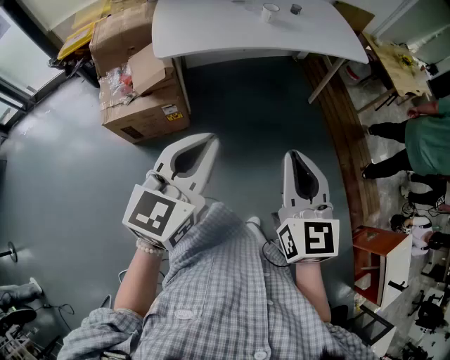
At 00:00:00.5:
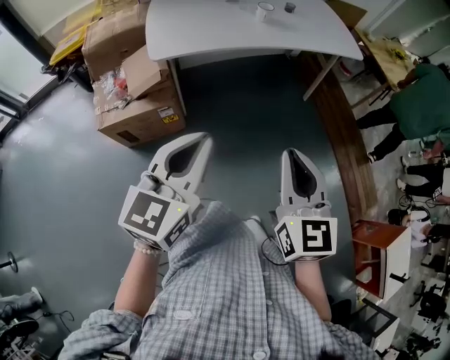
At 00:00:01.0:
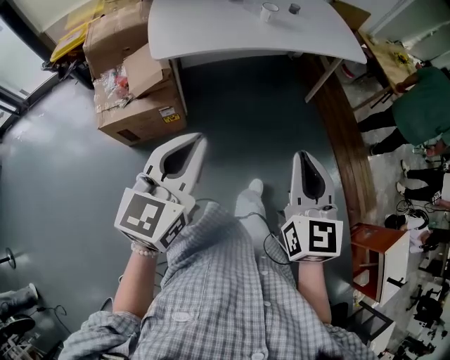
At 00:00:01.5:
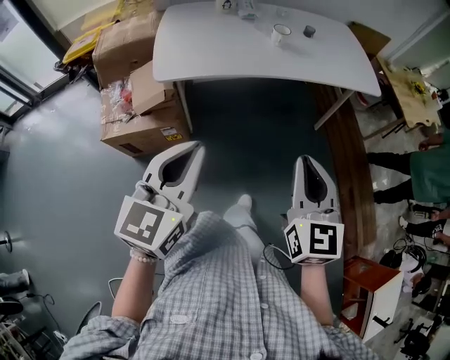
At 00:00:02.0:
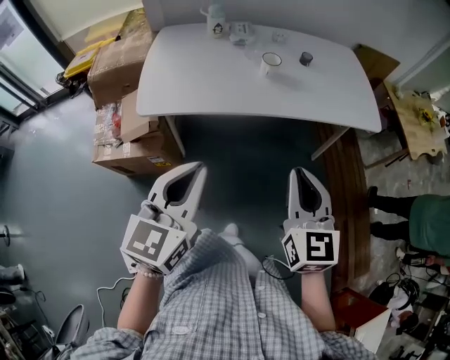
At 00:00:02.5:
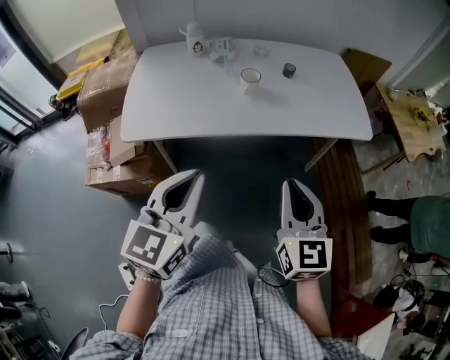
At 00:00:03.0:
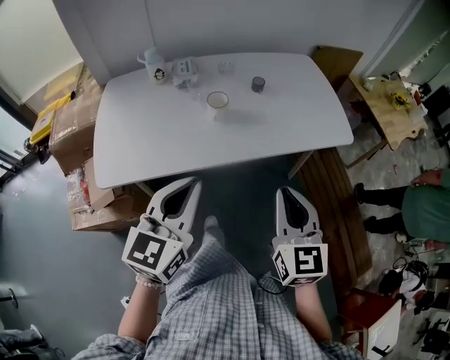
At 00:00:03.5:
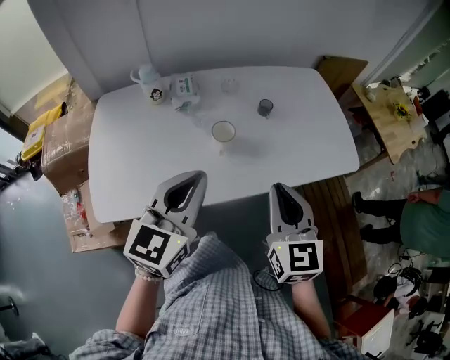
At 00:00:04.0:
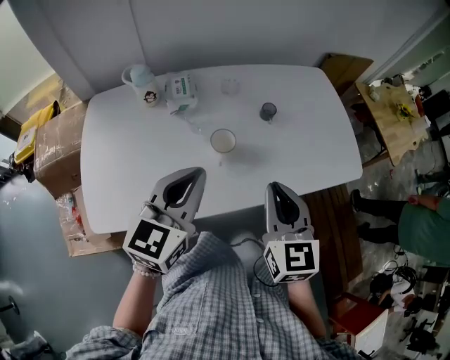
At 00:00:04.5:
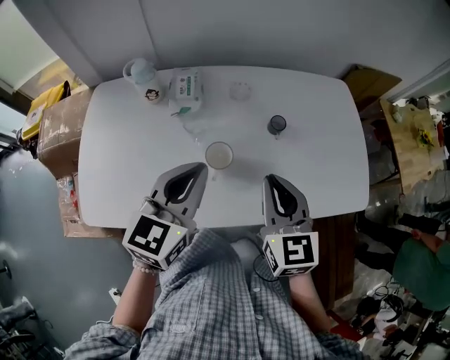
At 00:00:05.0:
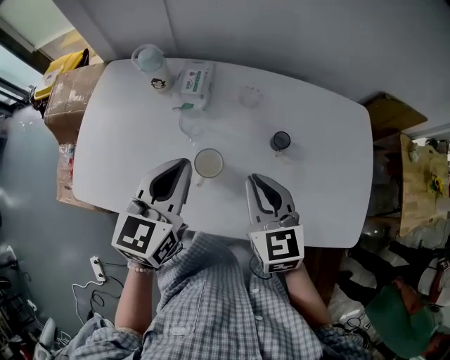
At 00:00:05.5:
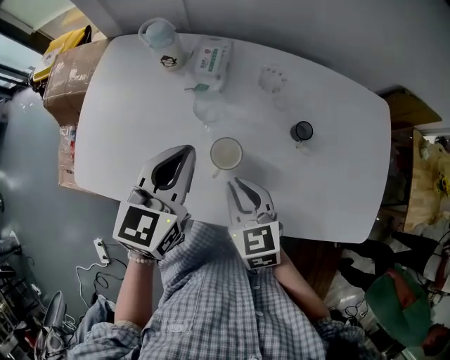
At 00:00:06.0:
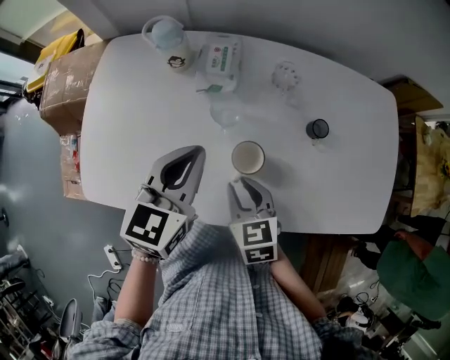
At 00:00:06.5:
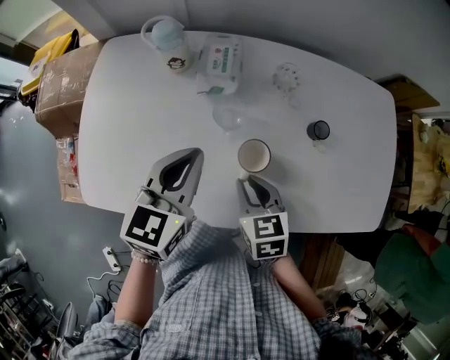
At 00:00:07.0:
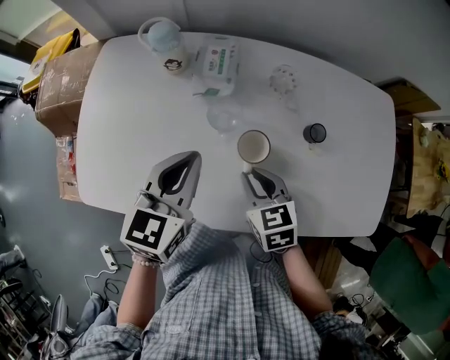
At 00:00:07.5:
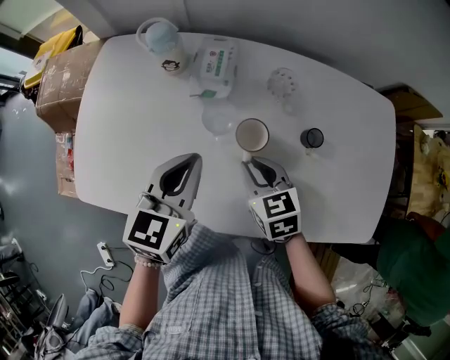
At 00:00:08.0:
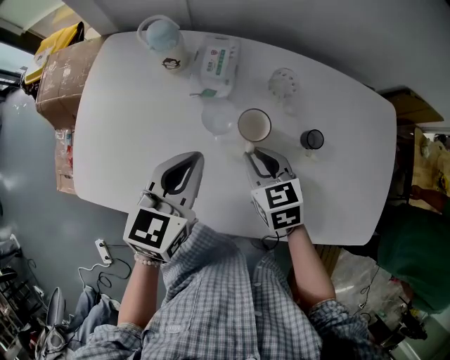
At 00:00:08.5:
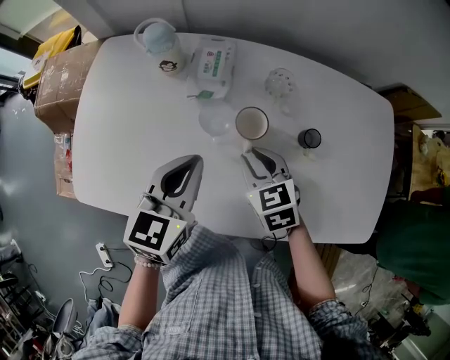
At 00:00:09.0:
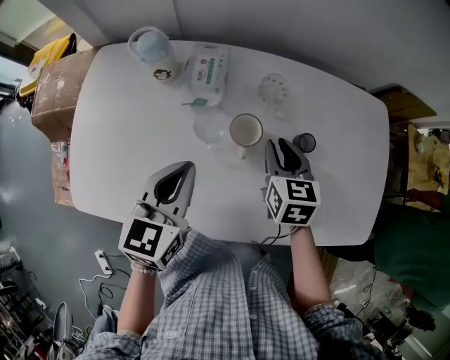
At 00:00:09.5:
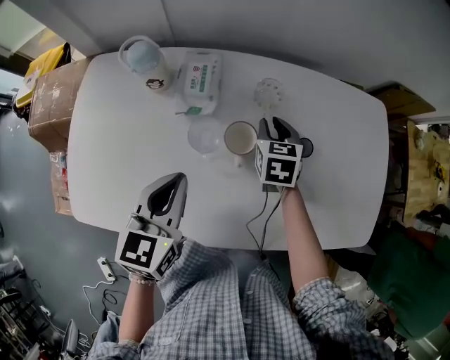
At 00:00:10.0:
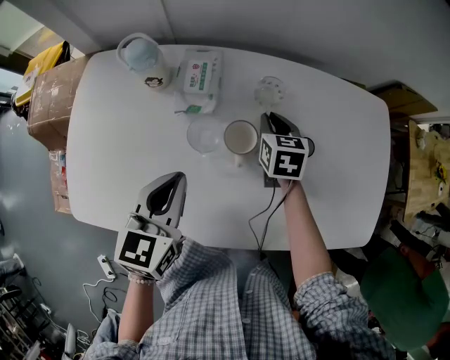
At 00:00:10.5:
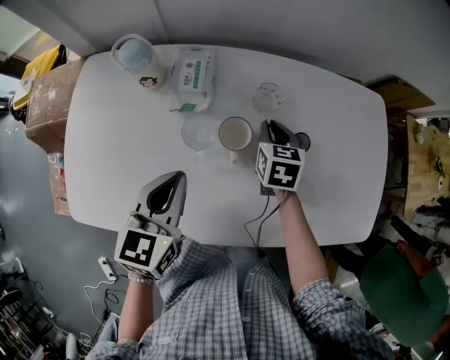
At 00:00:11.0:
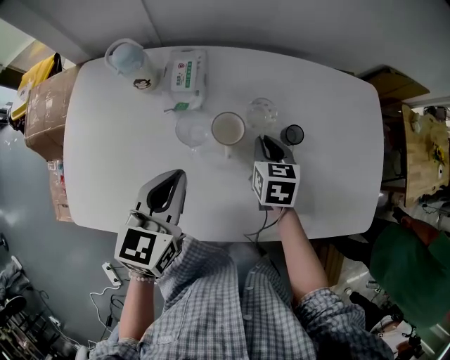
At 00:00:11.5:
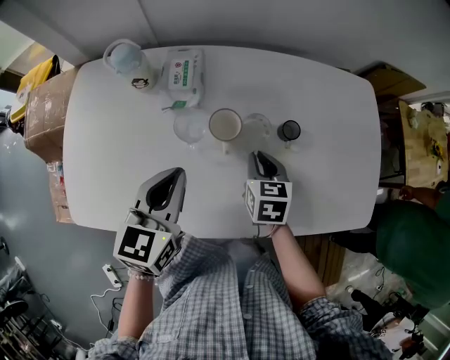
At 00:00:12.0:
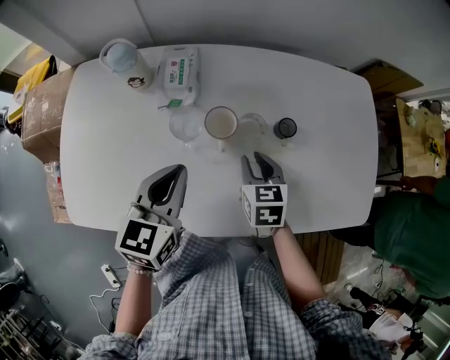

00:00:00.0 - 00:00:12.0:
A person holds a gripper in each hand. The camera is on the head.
00:00:00.0 - 00:00:02.0: The grippers both shift forward by approximately 25 cm.
00:00:02.0 - 00:00:04.0: Both grippers move forward, about 35 cm.
00:00:04.0 - 00:00:06.0: The right gripper shifts roughly 20 cm downward, and swivels some 40 degrees. Meanwhile the left gripper ends up about 15 cm from where it was, and turns by some 20 degrees.
00:00:06.0 - 00:00:08.0: The right gripper heads forward and to the right, covering approximately 10 cm.
00:00:08.0 - 00:00:10.0: The right gripper goes approximately 15 cm forward and to the right, and turns by roughly 30 degrees.
00:00:10.0 - 00:00:12.0: The right gripper is displaced backward by approximately 15 cm.

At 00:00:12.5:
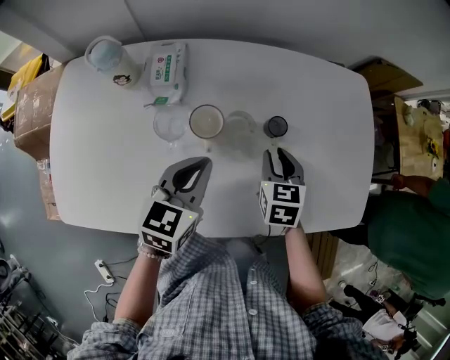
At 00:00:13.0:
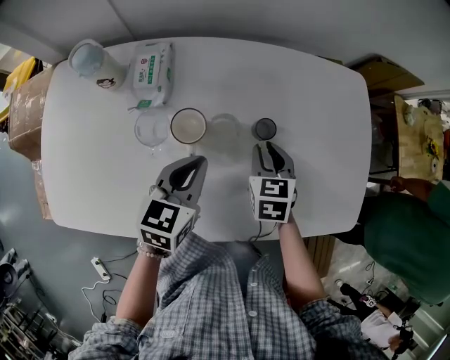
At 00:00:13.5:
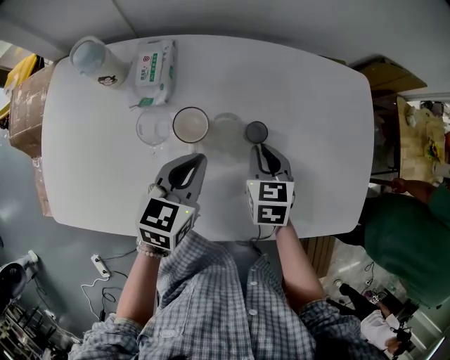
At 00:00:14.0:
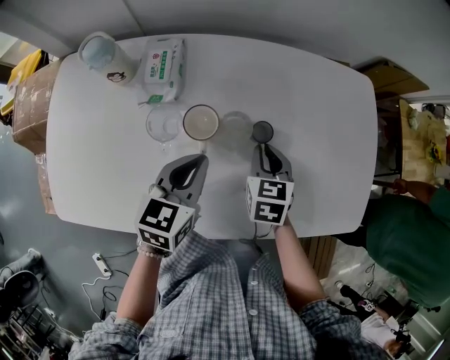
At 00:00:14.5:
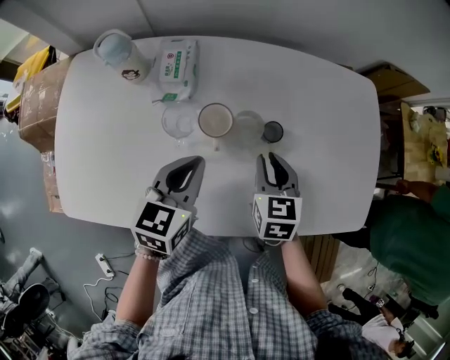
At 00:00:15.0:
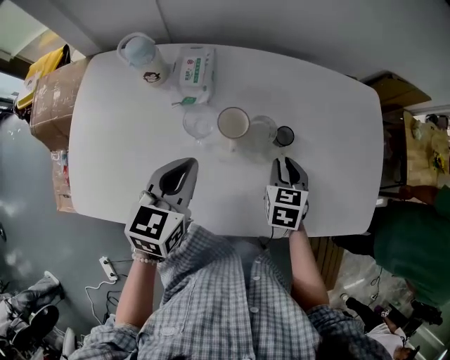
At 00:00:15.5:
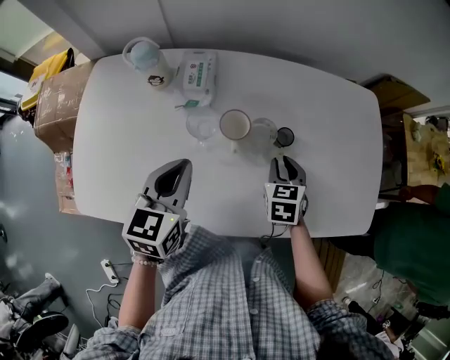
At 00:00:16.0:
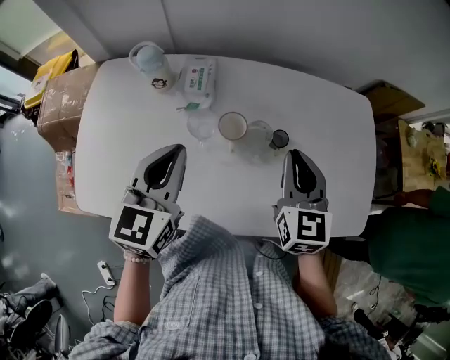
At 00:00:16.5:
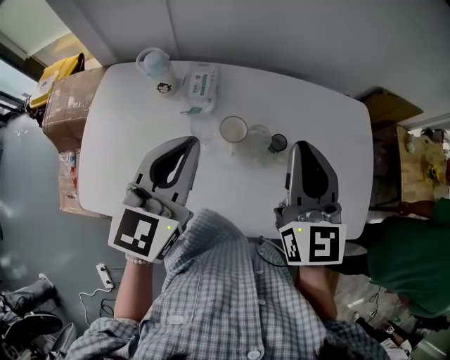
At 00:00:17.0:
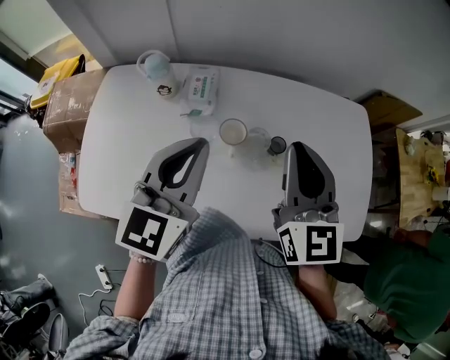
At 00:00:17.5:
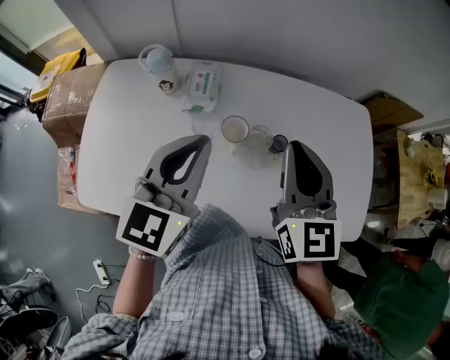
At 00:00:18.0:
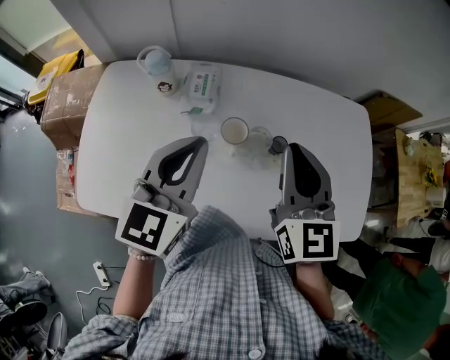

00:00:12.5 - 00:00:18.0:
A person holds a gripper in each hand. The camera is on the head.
00:00:12.5 - 00:00:14.5: The right gripper ends up approximately 5 cm from where it was.
00:00:14.5 - 00:00:16.0: The left gripper travels upward and to the left by some 15 cm. Meanwhile the right gripper heads upward, covering some 15 cm, and changes its angle by about 20 degrees.
00:00:16.0 - 00:00:18.0: The right gripper travels upward by about 10 cm. The left gripper is displaced upward by approximately 5 cm.

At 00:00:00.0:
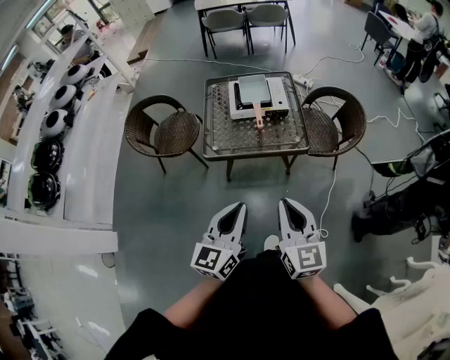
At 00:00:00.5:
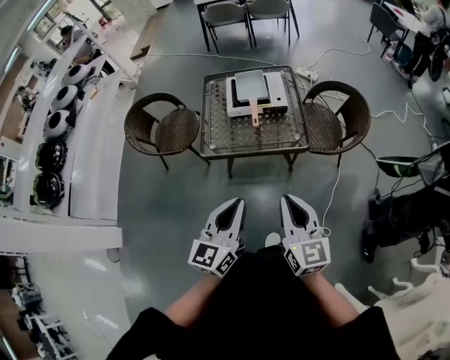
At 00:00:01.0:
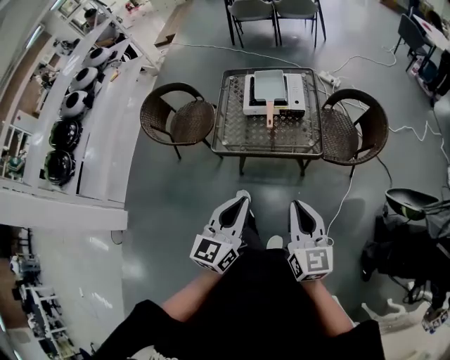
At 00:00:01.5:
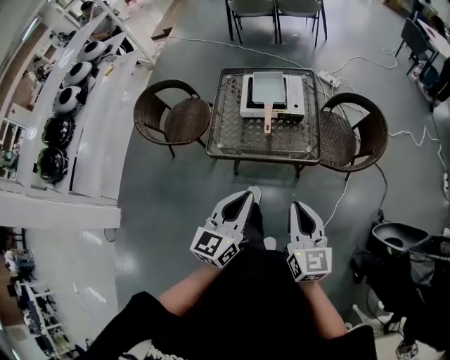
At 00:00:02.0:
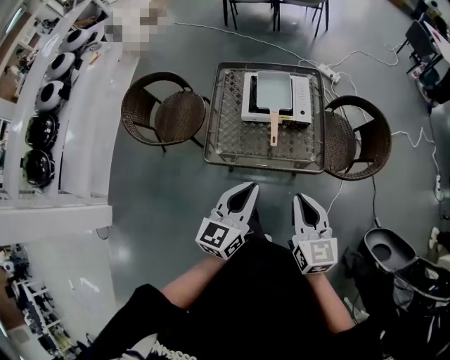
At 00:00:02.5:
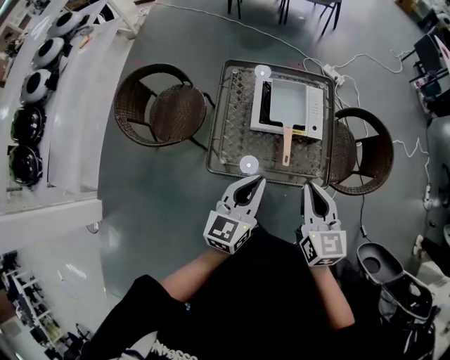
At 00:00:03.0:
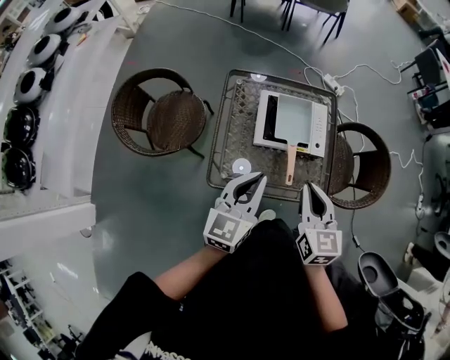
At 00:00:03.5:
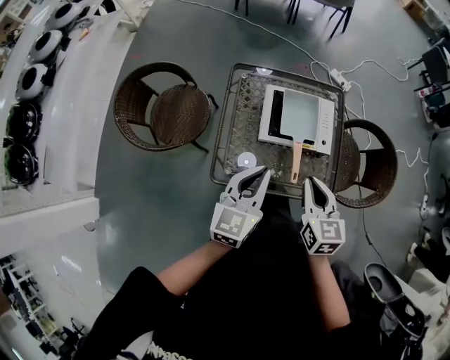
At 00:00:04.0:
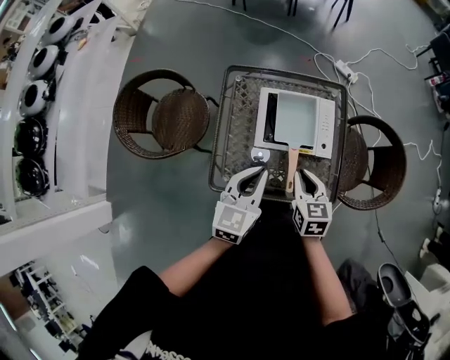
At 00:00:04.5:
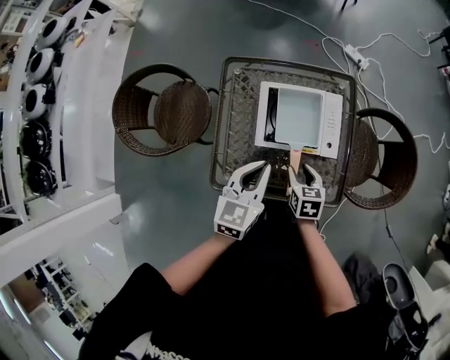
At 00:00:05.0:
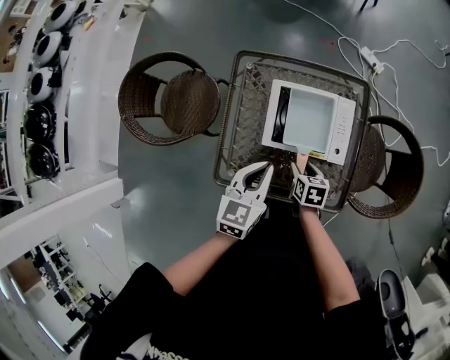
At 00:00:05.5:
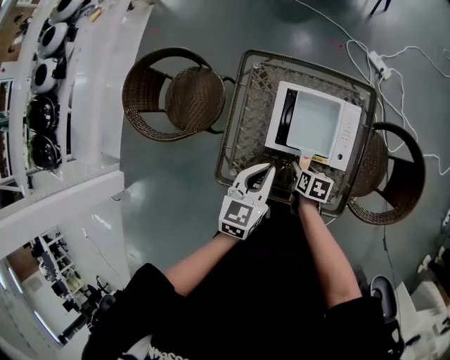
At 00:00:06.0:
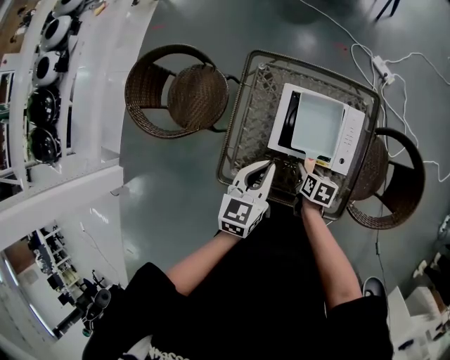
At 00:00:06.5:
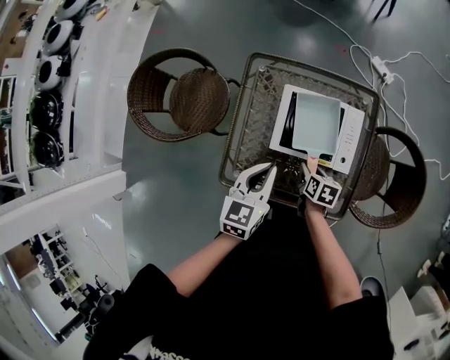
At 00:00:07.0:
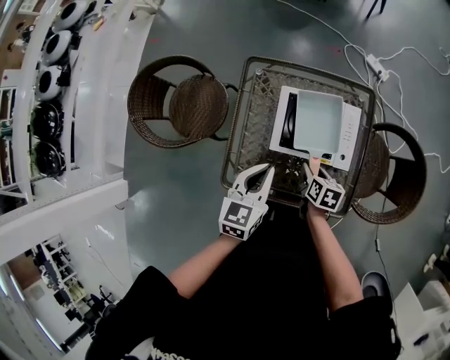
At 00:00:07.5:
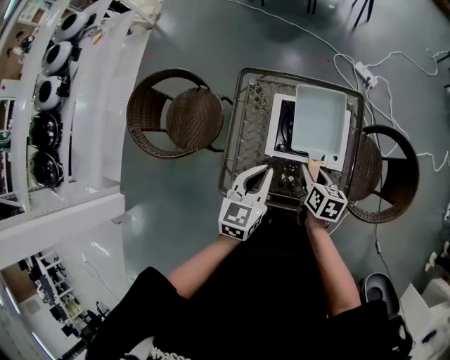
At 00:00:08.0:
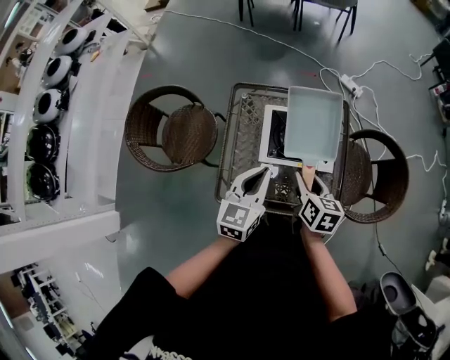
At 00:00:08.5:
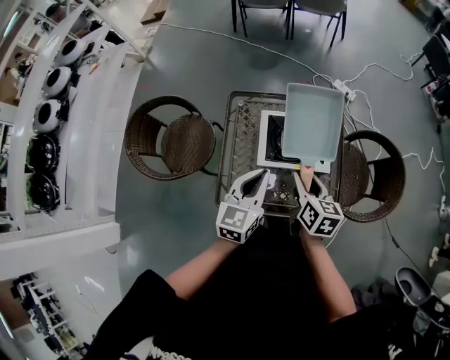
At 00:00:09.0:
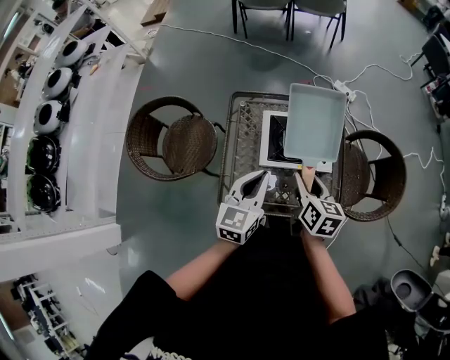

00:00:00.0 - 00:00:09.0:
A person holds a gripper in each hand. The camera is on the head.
00:00:00.0 - 00:00:02.0: Both grippers move forward, approximately 25 cm.
00:00:02.0 - 00:00:04.5: The right gripper moves forward and downward, about 40 cm, tips its fingers downward by about 30 degrees, and opens; the left gripper heads forward, covering about 30 cm.
00:00:07.0 - 00:00:09.0: The left gripper travels upward by roughly 10 cm. Meanwhile the right gripper goes approximately 20 cm upward, and turns by about 30 degrees.
